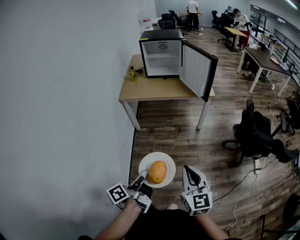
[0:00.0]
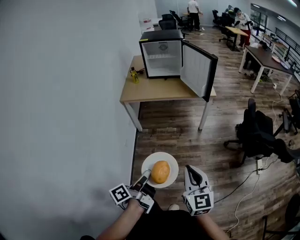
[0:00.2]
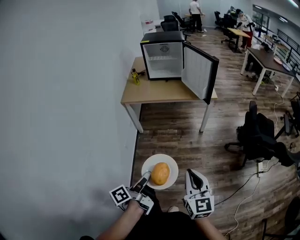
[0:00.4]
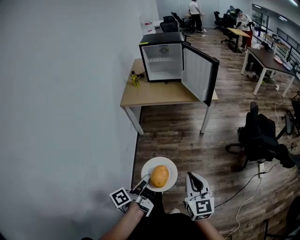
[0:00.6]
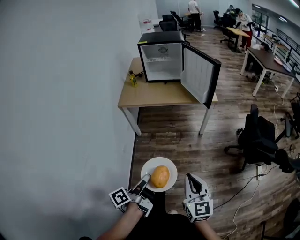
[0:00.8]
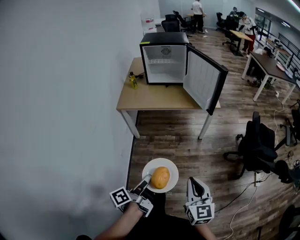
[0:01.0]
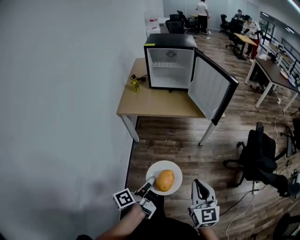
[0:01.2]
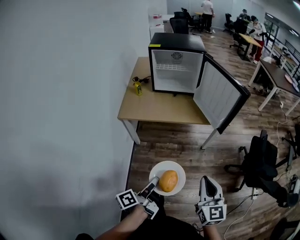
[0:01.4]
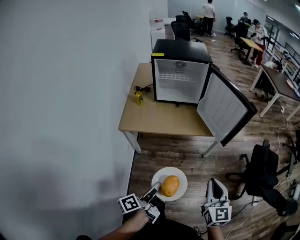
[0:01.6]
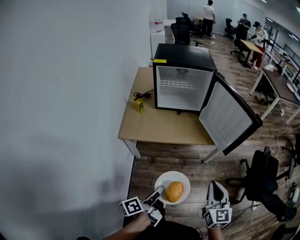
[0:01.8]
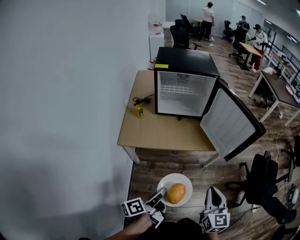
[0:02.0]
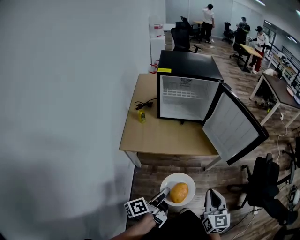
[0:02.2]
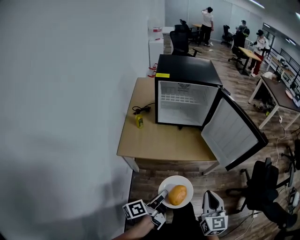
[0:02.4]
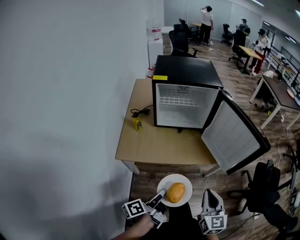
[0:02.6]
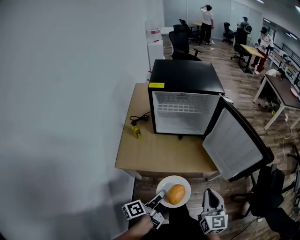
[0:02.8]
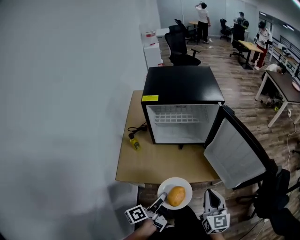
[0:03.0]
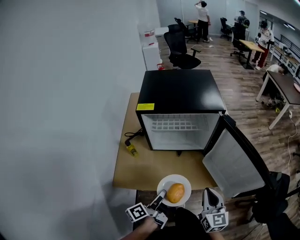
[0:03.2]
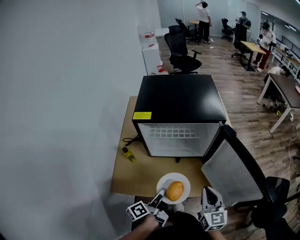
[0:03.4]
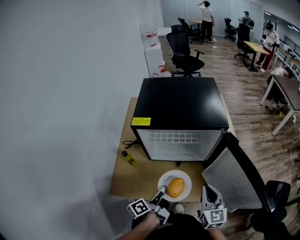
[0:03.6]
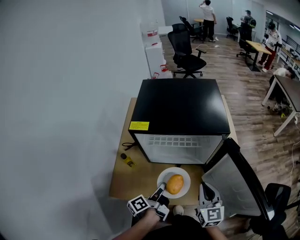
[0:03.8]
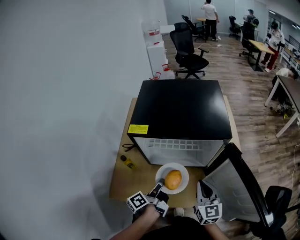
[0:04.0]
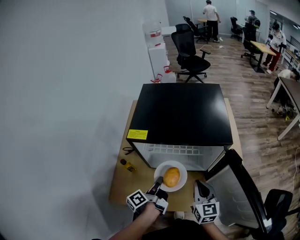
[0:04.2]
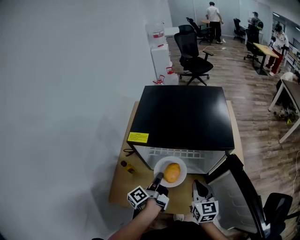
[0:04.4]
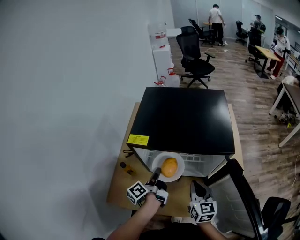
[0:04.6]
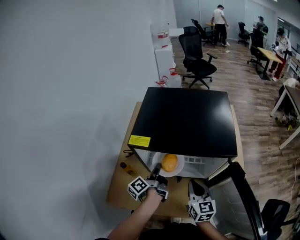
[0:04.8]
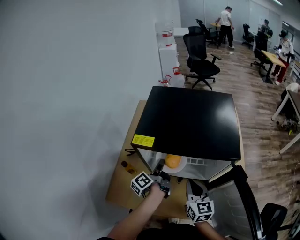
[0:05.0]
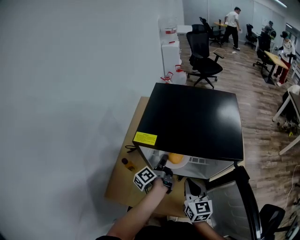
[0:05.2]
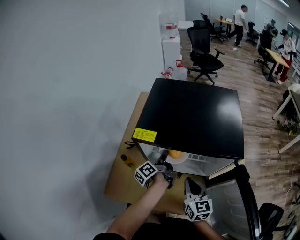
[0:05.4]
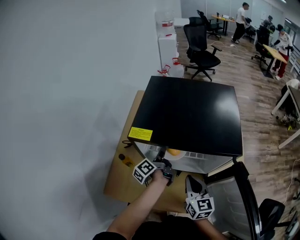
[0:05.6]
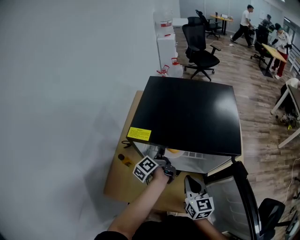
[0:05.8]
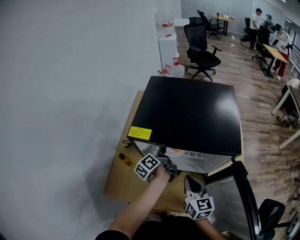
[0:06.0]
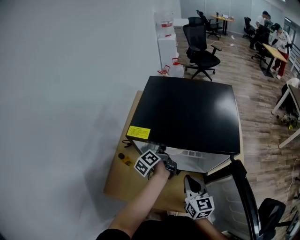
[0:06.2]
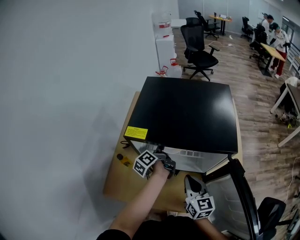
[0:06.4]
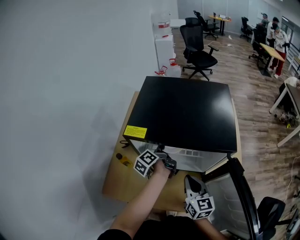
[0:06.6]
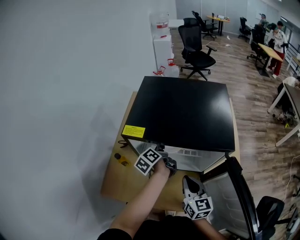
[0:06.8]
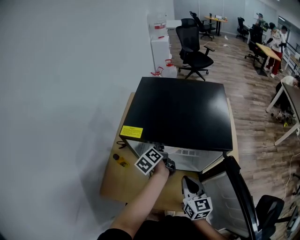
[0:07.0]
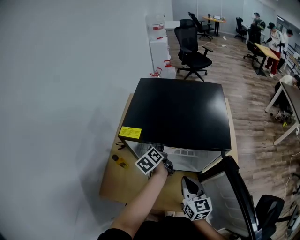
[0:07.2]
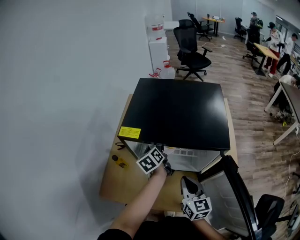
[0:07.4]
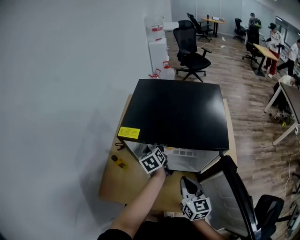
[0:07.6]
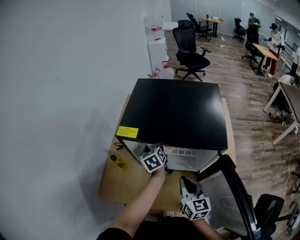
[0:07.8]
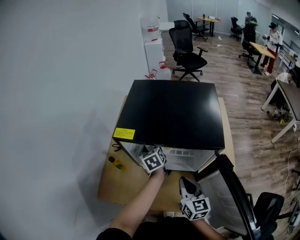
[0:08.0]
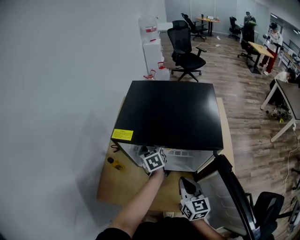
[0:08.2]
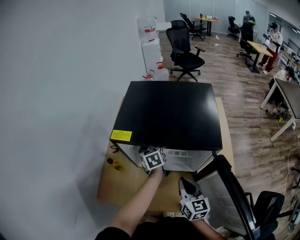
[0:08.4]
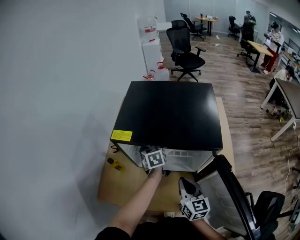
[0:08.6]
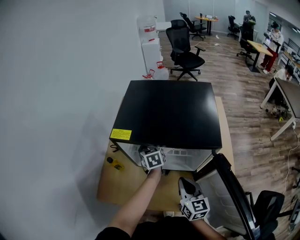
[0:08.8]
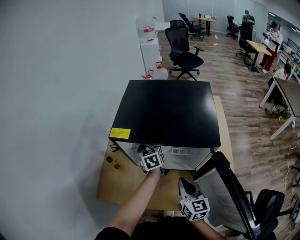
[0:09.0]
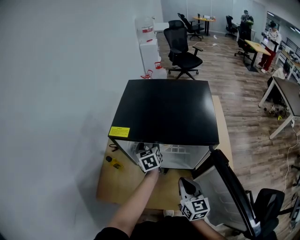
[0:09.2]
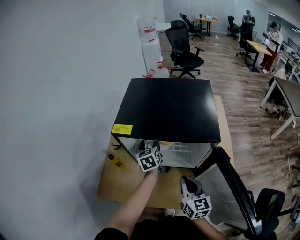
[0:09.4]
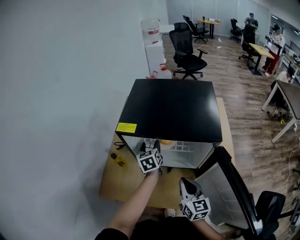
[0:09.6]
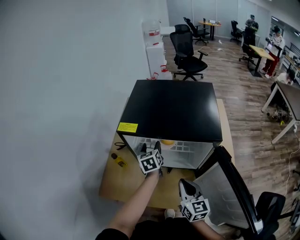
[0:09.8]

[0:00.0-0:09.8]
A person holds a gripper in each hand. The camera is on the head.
0:00.0 to 0:01.4: The grippers both shift forward by approximately 25 cm.
0:01.4 to 0:02.8: The two grippers go about 30 cm forward.
0:02.8 to 0:04.2: Both grippers move forward, approximately 35 cm.
0:04.2 to 0:05.6: The left gripper travels forward by approximately 15 cm. Meanwhile the right gripper is displaced forward by some 5 cm.
0:05.6 to 0:07.0: The left gripper changes its angle by approximately 20 degrees.
0:07.0 to 0:08.4: The left gripper rotates around the line of its fingers by roughly 40 degrees, clockwise from behind, and opens its fingers.
0:08.4 to 0:09.8: The grippers make only small movements.

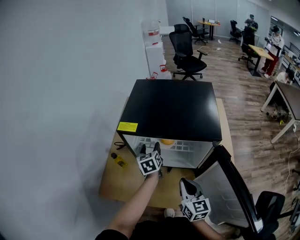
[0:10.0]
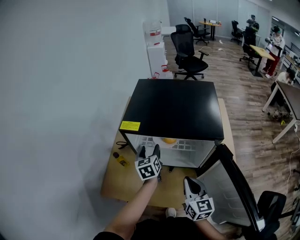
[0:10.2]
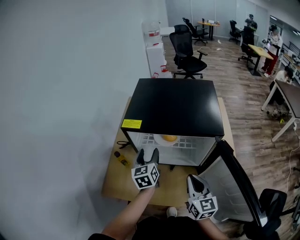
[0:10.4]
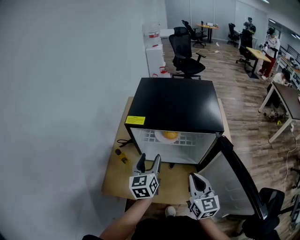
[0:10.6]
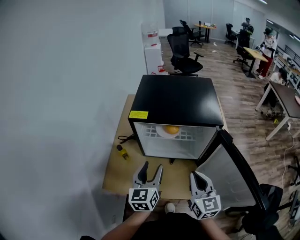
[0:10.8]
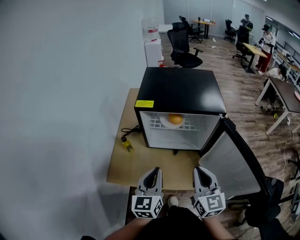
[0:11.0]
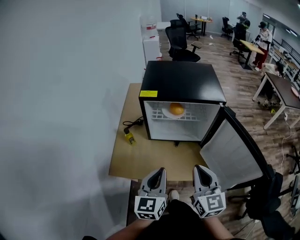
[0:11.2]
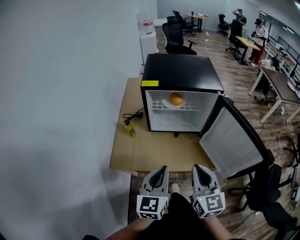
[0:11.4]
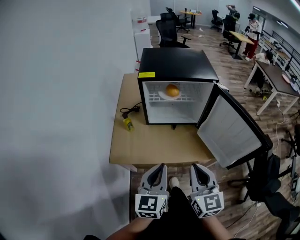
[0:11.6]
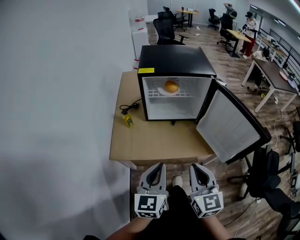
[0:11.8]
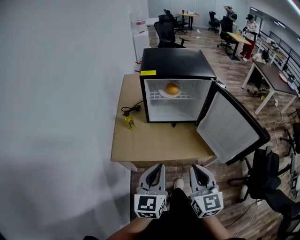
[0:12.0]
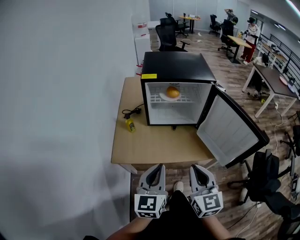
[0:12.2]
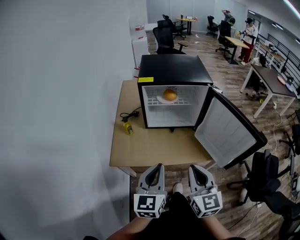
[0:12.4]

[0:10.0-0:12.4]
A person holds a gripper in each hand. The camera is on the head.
0:10.0 to 0:11.2: The right gripper is displaced backward and upward by some 20 cm, while the left gripper is displaced backward by roughly 35 cm, turns by roughly 30 degrees, and closes up.
0:11.2 to 0:12.4: The two grippers go about 10 cm backward.

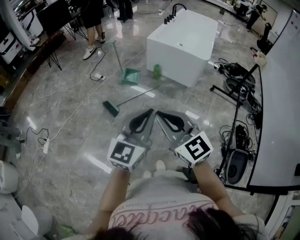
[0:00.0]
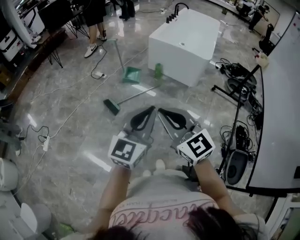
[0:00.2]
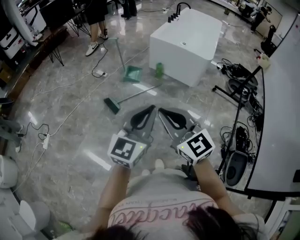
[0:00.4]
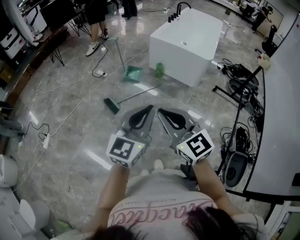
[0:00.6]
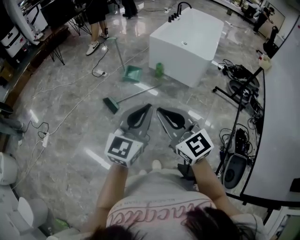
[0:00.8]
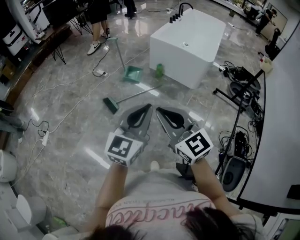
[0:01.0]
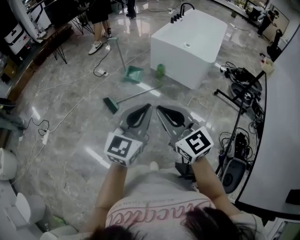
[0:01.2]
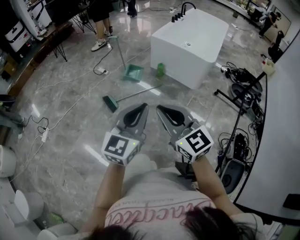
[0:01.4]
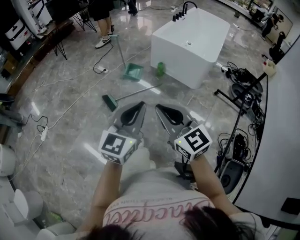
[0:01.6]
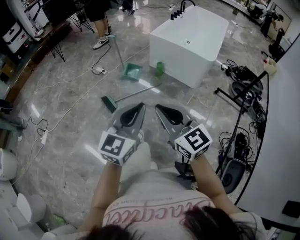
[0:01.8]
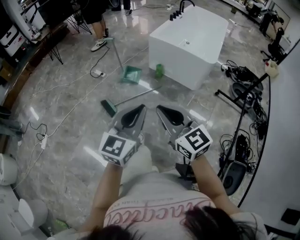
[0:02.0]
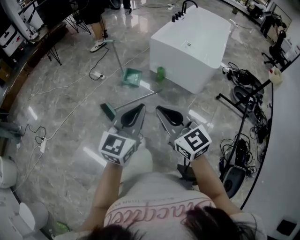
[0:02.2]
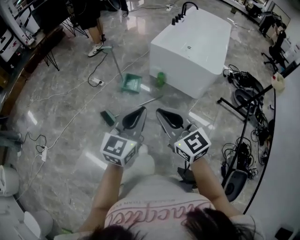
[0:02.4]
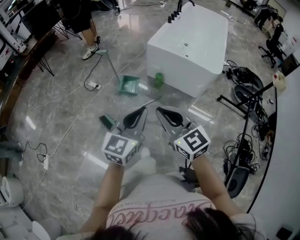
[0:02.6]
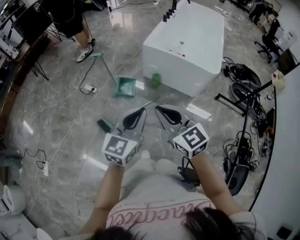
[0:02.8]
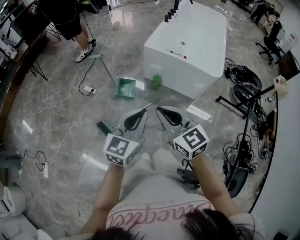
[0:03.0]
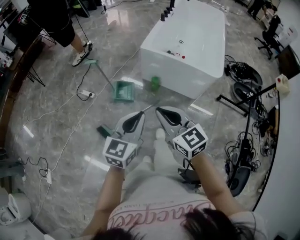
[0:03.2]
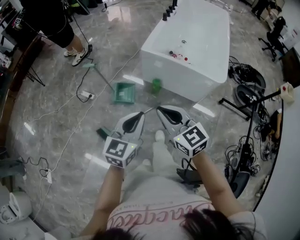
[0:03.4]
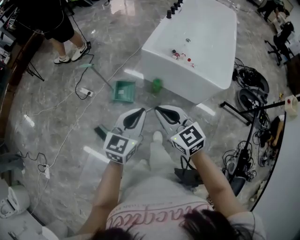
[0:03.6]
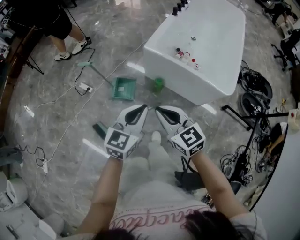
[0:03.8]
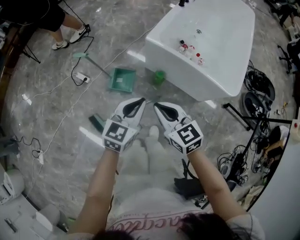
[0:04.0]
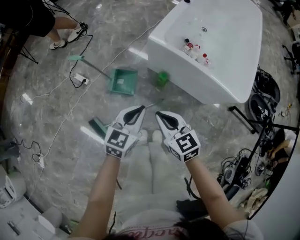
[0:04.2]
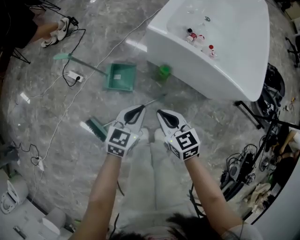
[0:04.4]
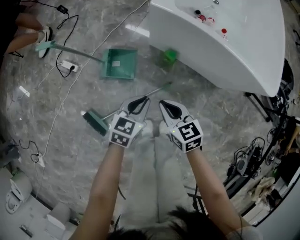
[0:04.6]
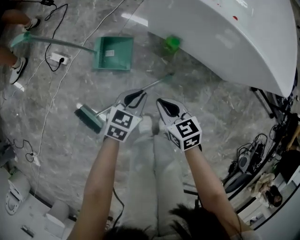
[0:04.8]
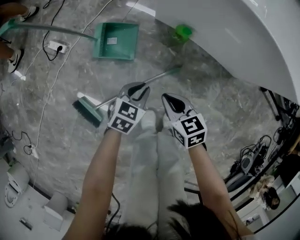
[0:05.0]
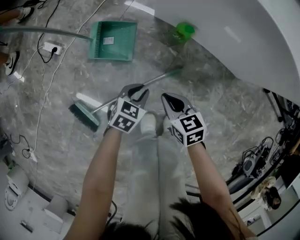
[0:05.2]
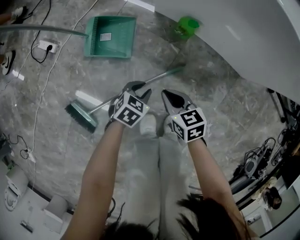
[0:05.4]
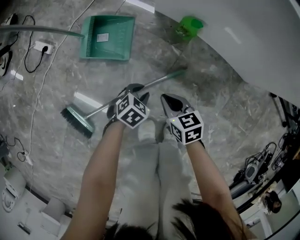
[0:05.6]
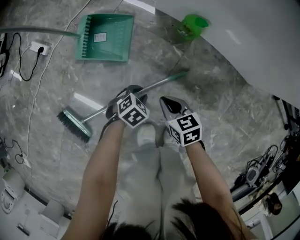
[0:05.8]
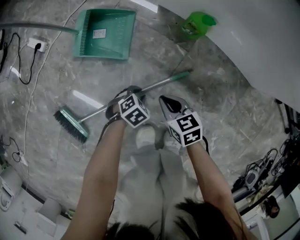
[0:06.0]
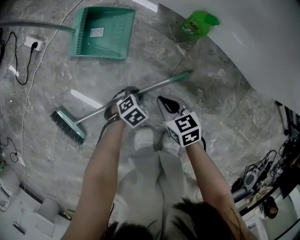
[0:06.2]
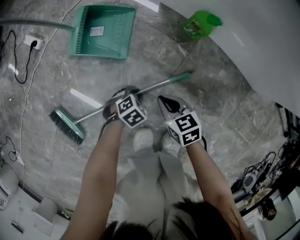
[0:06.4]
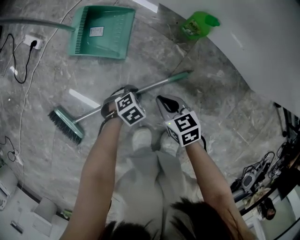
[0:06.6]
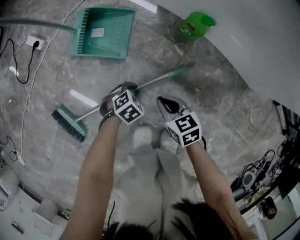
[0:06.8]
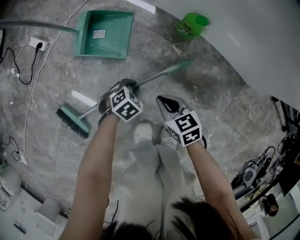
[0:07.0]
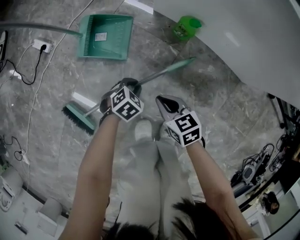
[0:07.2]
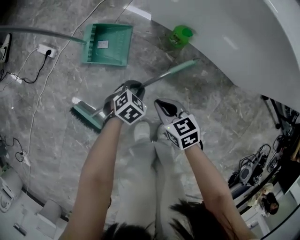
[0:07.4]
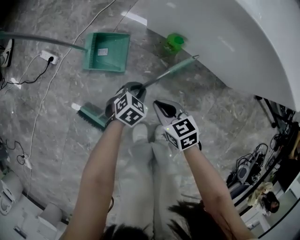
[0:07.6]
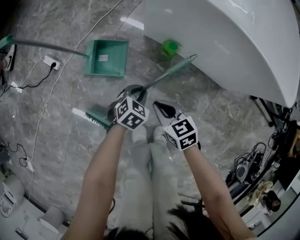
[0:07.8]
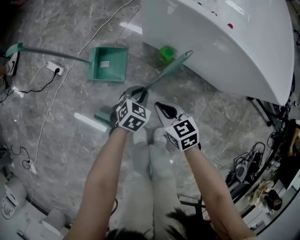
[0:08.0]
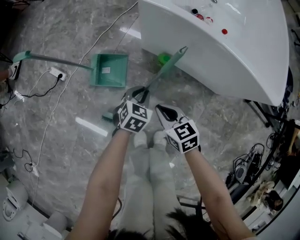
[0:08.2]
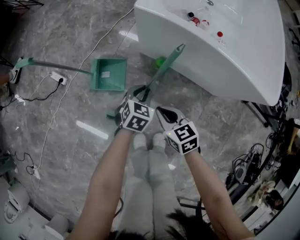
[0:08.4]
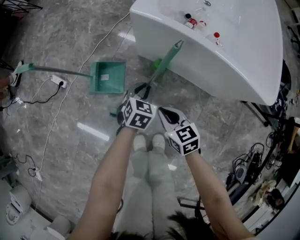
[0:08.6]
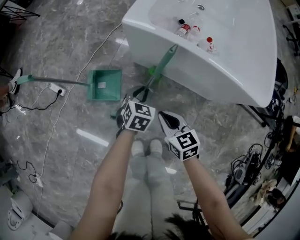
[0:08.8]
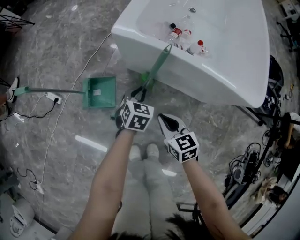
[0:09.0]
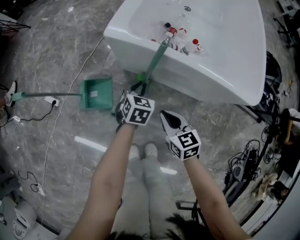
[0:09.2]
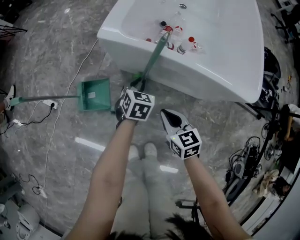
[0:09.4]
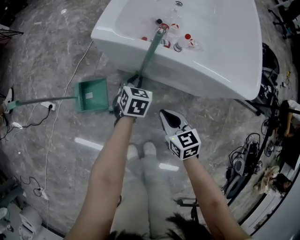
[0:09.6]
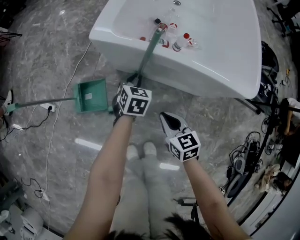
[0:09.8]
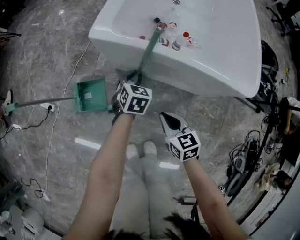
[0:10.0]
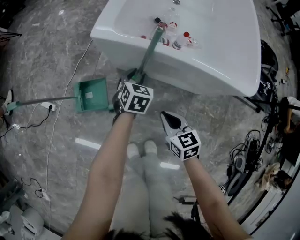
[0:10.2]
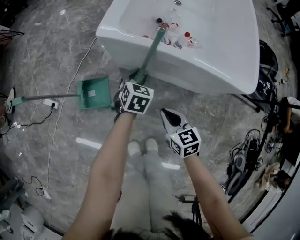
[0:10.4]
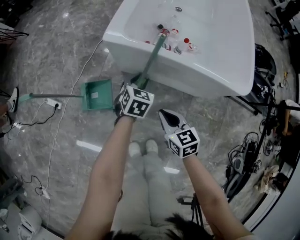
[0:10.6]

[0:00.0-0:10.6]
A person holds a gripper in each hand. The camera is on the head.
0:00.0 to 0:01.6: The left gripper moves about 5 cm; the right gripper travels to the right by about 5 cm.
0:01.6 to 0:03.0: The two grippers go approximately 30 cm forward.
0:03.0 to 0:04.6: The grippers both shift downward and forward by about 40 cm. The left gripper changes its angle by approximately 30 degrees. Meanwhile the right gripper turns by roughly 30 degrees.
0:04.6 to 0:06.0: Both grippers move downward, some 40 cm. The left gripper angles its fingers downward, by about 40 degrees.
0:06.0 to 0:07.6: Both grippers travel together upward, roughly 15 cm.
0:07.6 to 0:09.0: The right gripper is displaced upward, to the right and forward by approximately 20 cm, while the left gripper shifts some 25 cm upward, forward and to the right.
0:09.0 to 0:10.6: The right gripper ends up some 5 cm from where it was. Meanwhile the left gripper is displaced upward by roughly 5 cm.

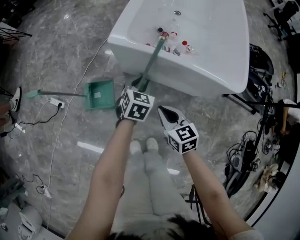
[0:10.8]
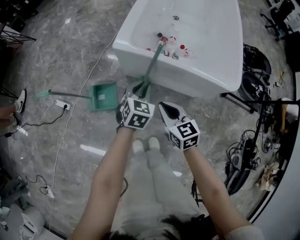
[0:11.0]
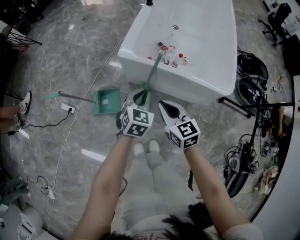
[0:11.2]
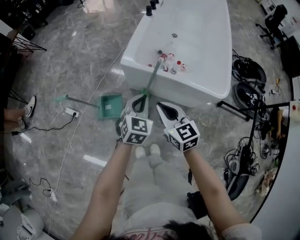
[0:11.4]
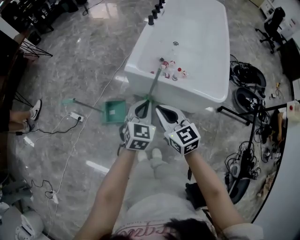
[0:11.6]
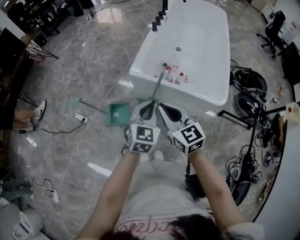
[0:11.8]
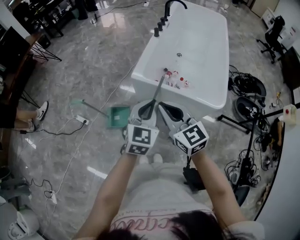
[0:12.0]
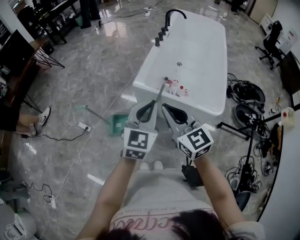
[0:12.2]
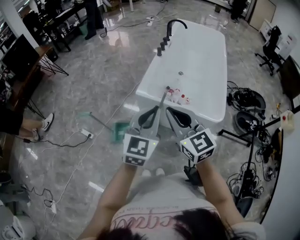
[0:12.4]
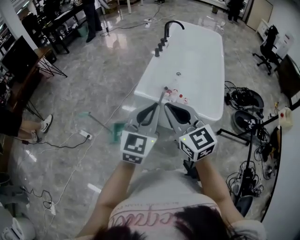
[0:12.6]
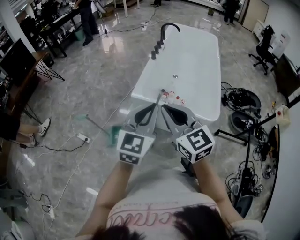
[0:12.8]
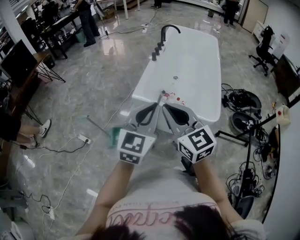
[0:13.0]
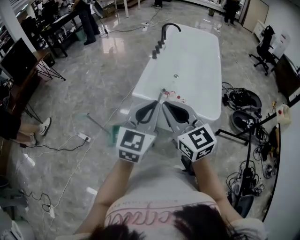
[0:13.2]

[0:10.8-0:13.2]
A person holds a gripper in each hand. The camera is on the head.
0:10.8 to 0:12.0: Both grippers travel together upward, about 35 cm. The right gripper turns by about 30 degrees. Meanwhile the left gripper turns by roughly 30 degrees, and closes.
0:12.0 to 0:13.2: The two grippers go about 10 cm upward.
